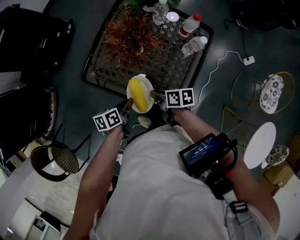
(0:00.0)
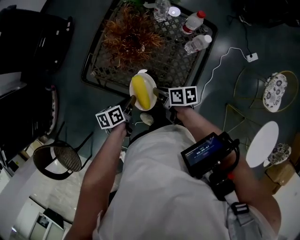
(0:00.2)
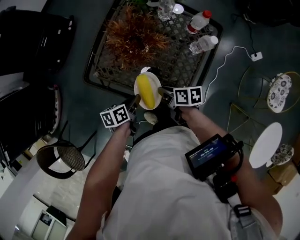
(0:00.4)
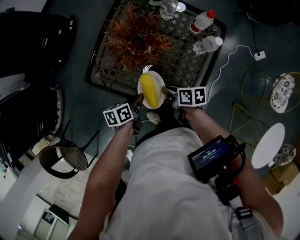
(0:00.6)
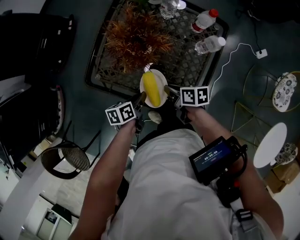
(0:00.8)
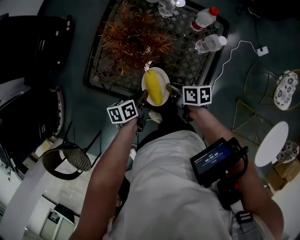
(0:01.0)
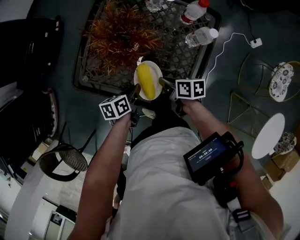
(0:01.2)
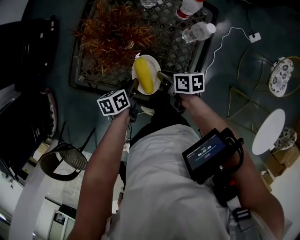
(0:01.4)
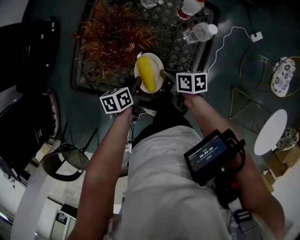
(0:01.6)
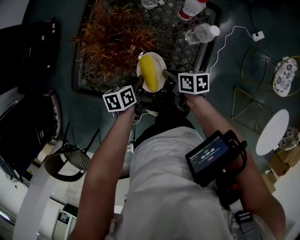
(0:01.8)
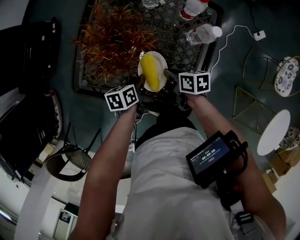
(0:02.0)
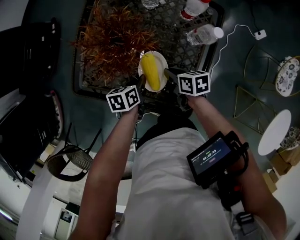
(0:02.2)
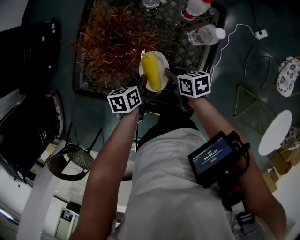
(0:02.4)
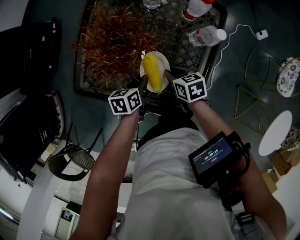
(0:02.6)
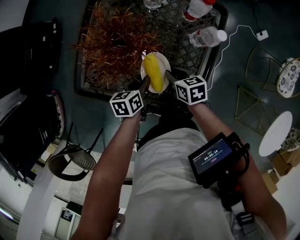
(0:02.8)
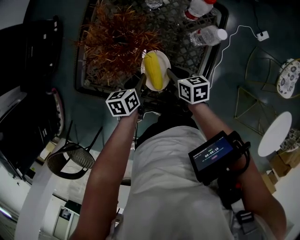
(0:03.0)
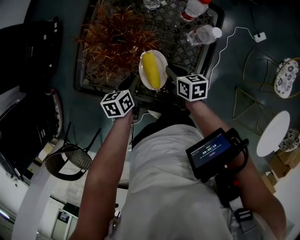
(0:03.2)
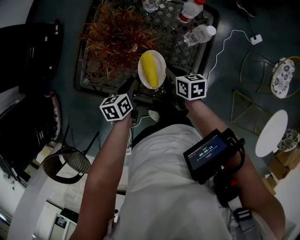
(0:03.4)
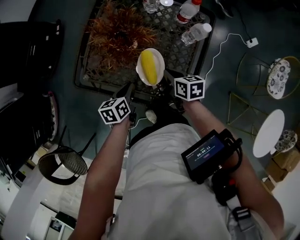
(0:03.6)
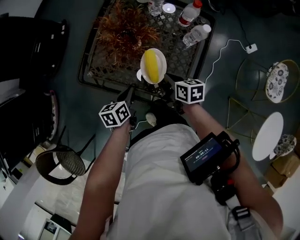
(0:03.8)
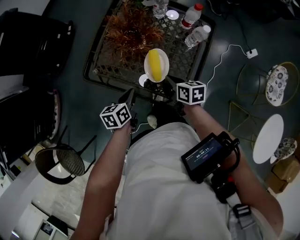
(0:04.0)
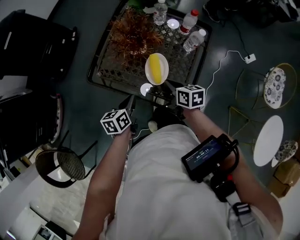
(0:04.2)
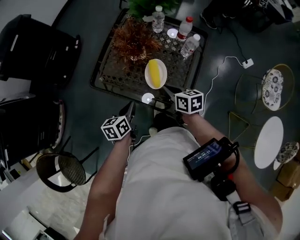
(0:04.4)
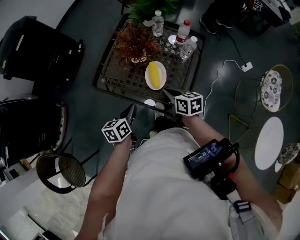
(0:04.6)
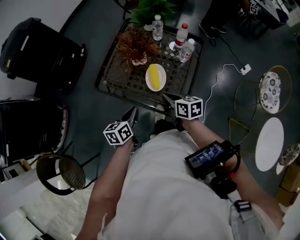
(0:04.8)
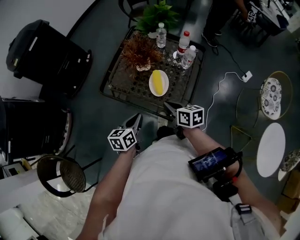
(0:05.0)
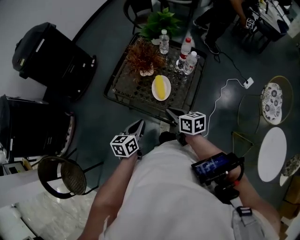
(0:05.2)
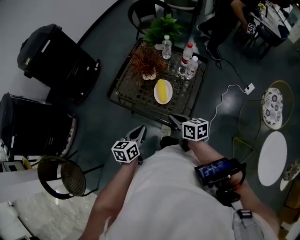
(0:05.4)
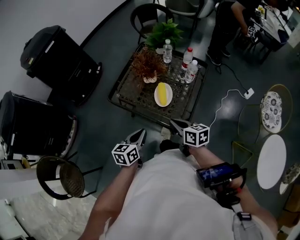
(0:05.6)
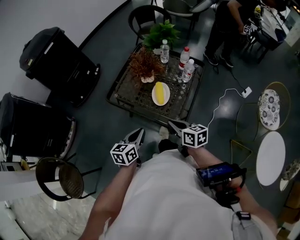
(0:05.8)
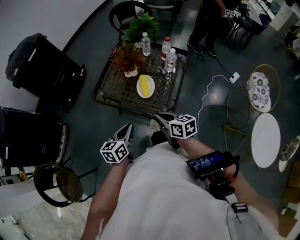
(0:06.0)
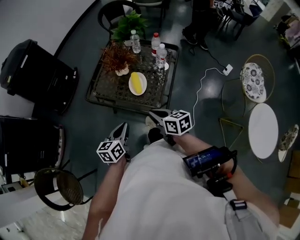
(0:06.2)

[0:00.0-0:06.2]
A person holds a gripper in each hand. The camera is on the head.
0:00.0 to 0:01.6: The left gripper goes some 15 cm forward, downward and to the right. Meanwhile the right gripper is displaced downward, to the right and forward by about 15 cm.
0:03.2 to 0:04.6: The left gripper is displaced backward and upward by approximately 20 cm. The right gripper travels upward and backward by roughly 20 cm.
0:04.6 to 0:06.2: Both grippers move backward and upward, approximately 15 cm.

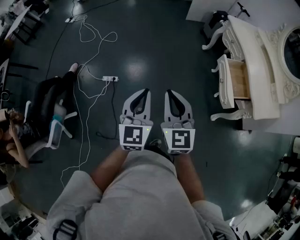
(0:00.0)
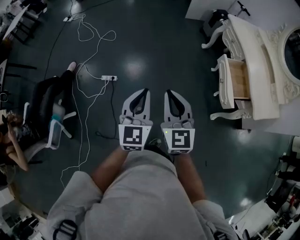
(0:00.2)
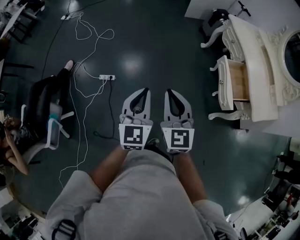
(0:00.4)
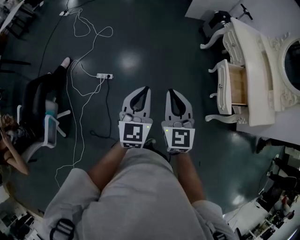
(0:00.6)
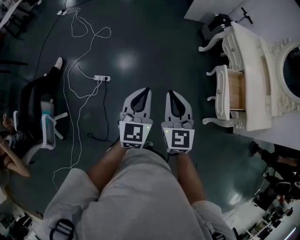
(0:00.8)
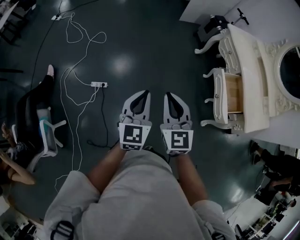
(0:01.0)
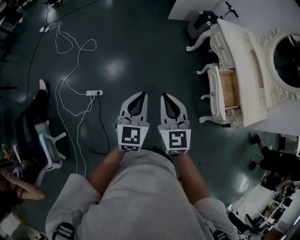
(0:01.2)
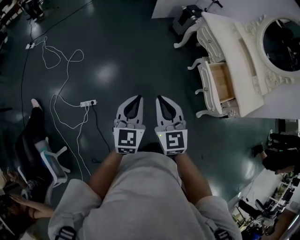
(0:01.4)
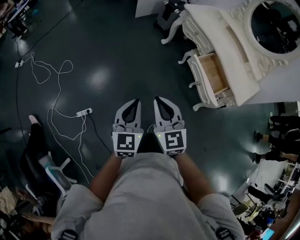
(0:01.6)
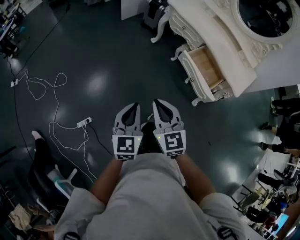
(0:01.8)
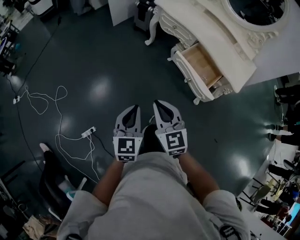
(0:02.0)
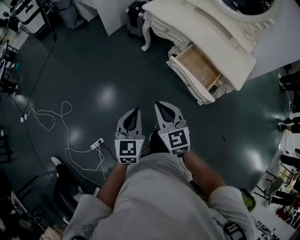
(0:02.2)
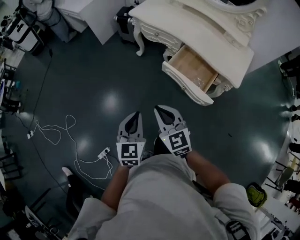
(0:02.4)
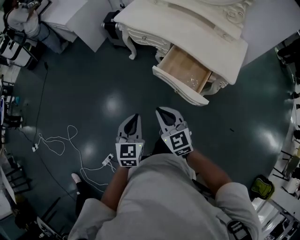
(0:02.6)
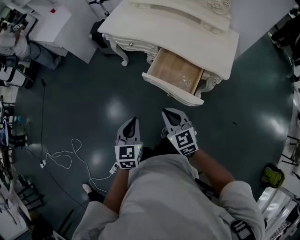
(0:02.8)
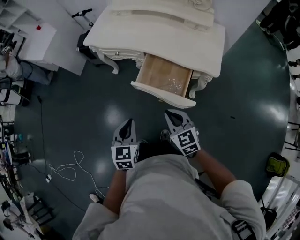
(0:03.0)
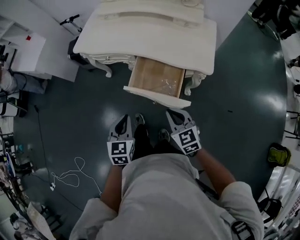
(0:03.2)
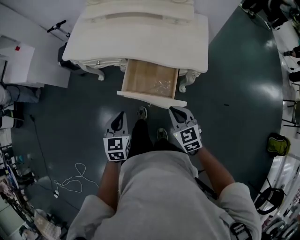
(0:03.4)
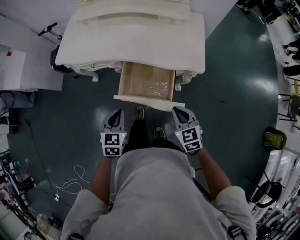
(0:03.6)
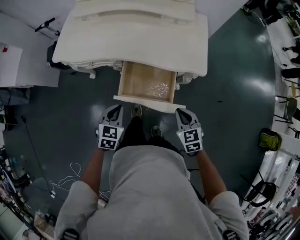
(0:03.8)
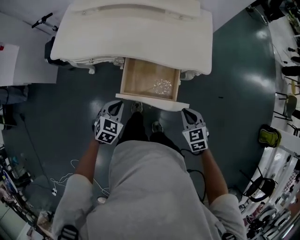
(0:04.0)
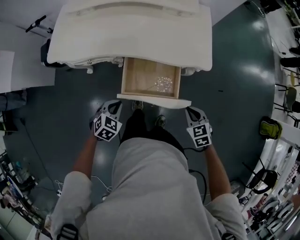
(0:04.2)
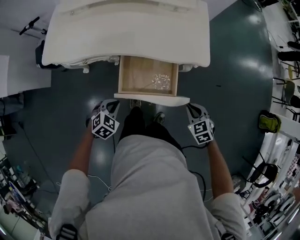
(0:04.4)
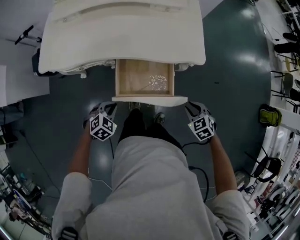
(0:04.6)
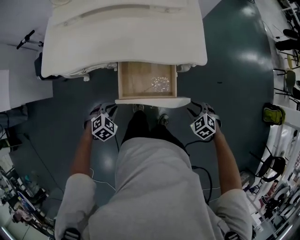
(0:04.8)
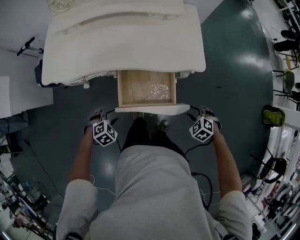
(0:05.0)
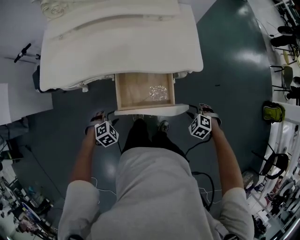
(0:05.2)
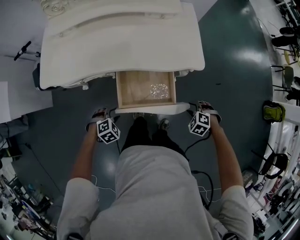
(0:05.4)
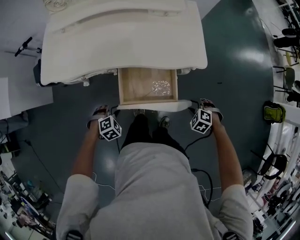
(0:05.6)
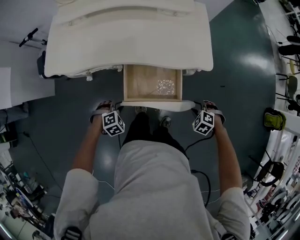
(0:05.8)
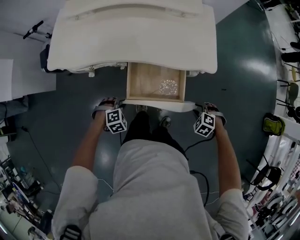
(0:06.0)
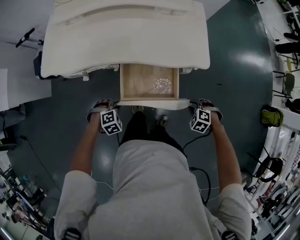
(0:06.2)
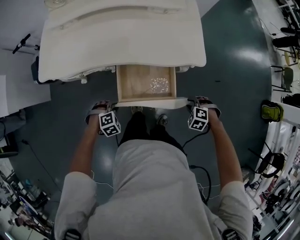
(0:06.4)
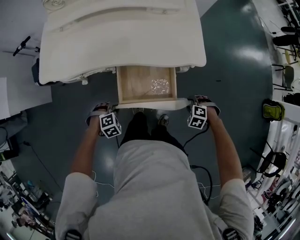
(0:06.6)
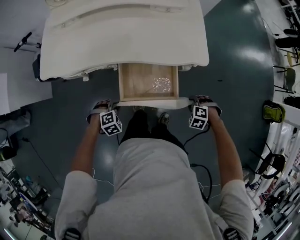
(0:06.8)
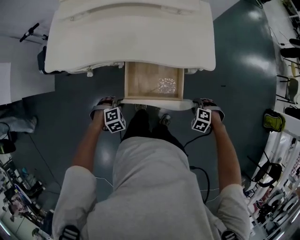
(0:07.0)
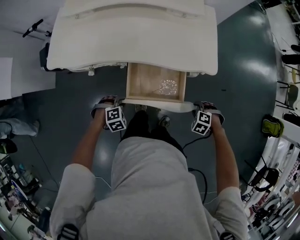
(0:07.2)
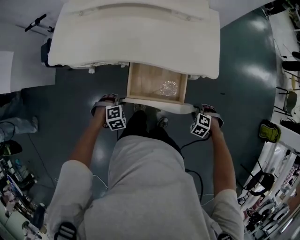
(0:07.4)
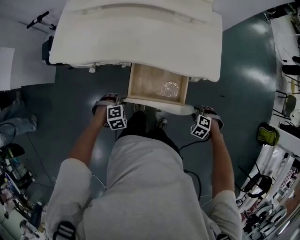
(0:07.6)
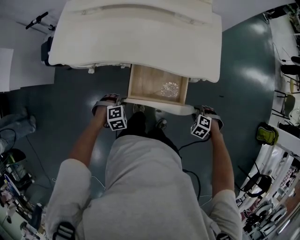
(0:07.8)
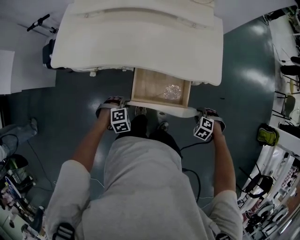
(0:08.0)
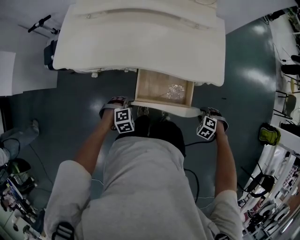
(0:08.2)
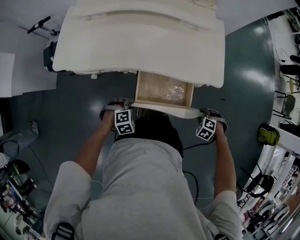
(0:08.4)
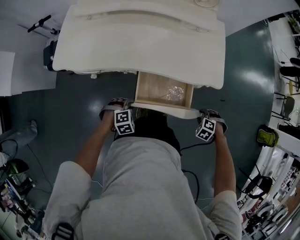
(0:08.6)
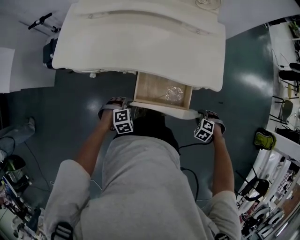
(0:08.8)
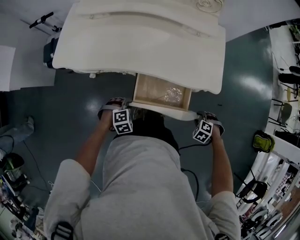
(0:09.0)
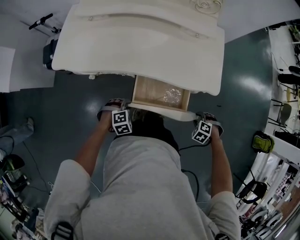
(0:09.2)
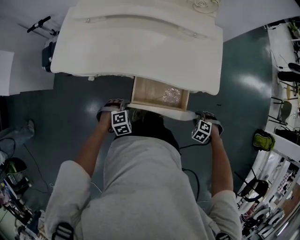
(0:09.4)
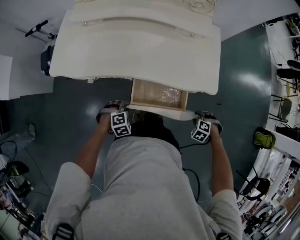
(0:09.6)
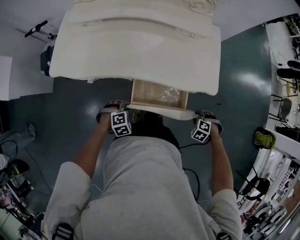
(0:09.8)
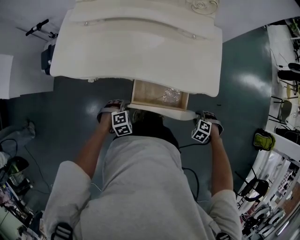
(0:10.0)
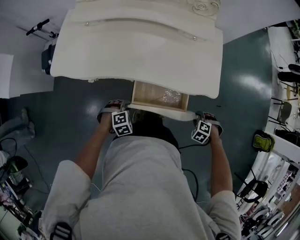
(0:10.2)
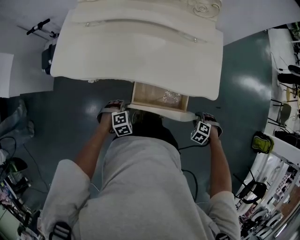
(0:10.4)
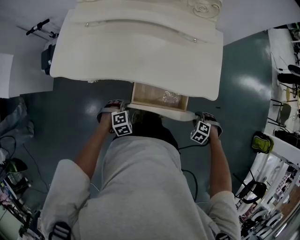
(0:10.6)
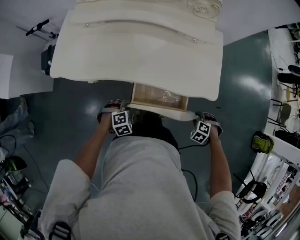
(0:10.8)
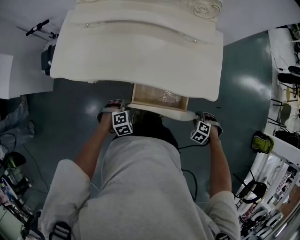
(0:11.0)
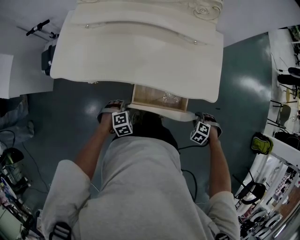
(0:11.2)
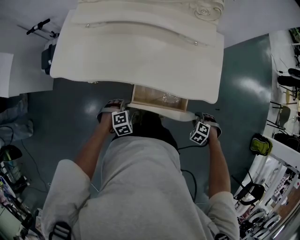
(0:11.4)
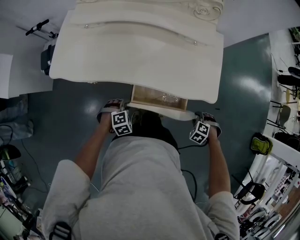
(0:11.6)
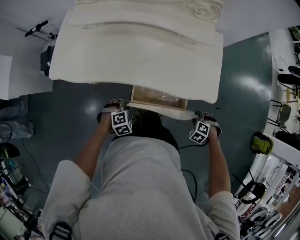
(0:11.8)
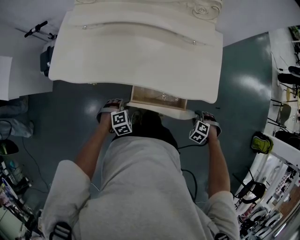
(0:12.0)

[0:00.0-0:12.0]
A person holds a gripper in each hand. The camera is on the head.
0:00.0 to 0:01.6: Both grippers move forward, roughly 20 cm. The left gripper changes its angle by roughly 20 degrees.
0:01.6 to 0:03.0: The right gripper shifts by roughly 40 cm, and turns by roughly 30 degrees. Meanwhile the left gripper moves about 40 cm, and turns by approximately 40 degrees.
0:03.0 to 0:04.4: The left gripper ends up approximately 25 cm from where it was, and changes its angle by some 60 degrees; the right gripper moves some 20 cm, and swivels roughly 40 degrees.
0:04.4 to 0:06.0: The grippers both shift downward by about 10 cm. The left gripper rotates about 30 degrees, and opens its fingers, while the right gripper turns by some 40 degrees, and opens its fingers.
0:06.0 to 0:09.0: The grippers move only a little.
0:09.0 to 0:12.0: The grippers move only a little.

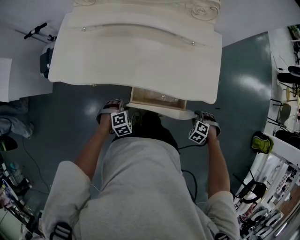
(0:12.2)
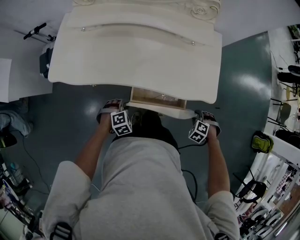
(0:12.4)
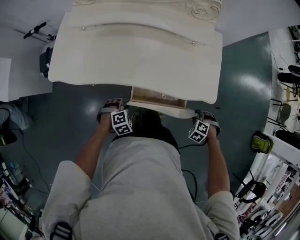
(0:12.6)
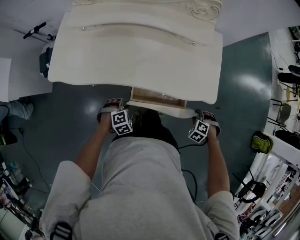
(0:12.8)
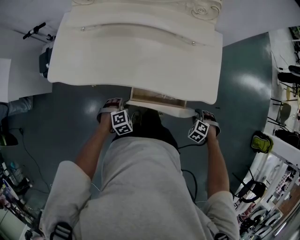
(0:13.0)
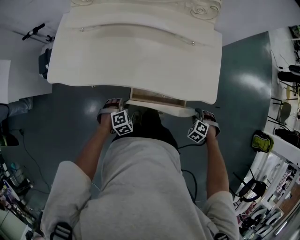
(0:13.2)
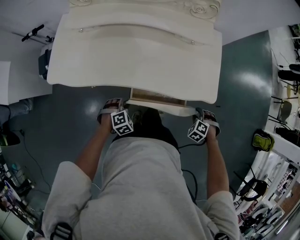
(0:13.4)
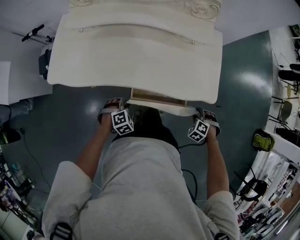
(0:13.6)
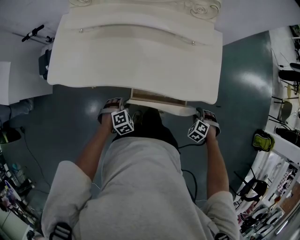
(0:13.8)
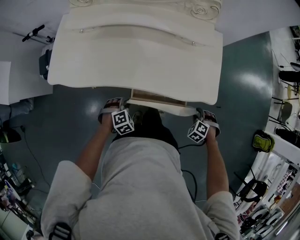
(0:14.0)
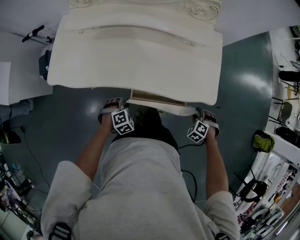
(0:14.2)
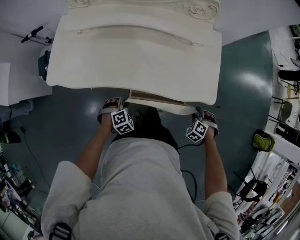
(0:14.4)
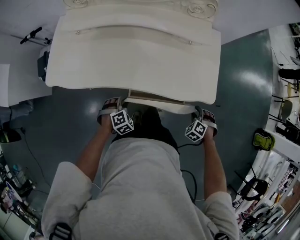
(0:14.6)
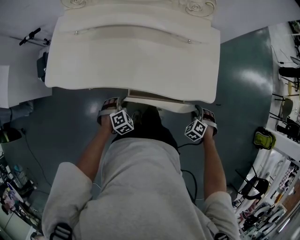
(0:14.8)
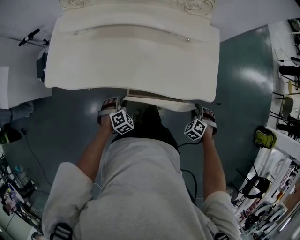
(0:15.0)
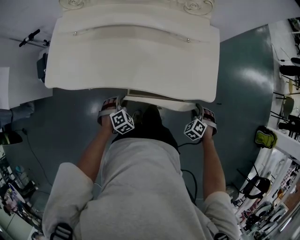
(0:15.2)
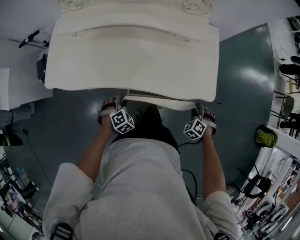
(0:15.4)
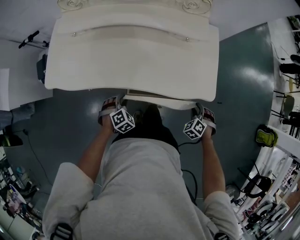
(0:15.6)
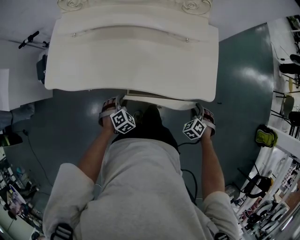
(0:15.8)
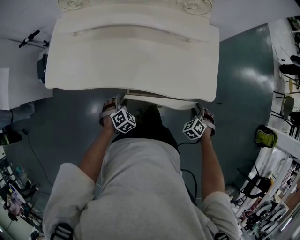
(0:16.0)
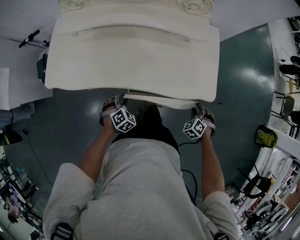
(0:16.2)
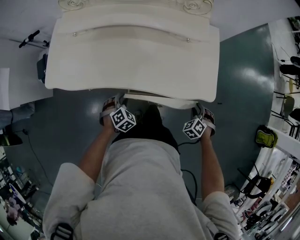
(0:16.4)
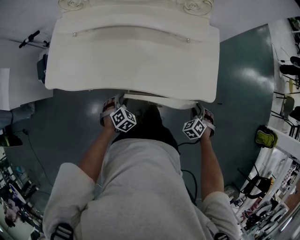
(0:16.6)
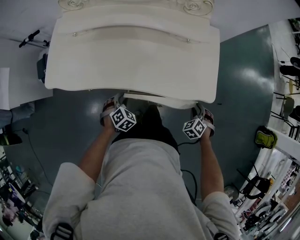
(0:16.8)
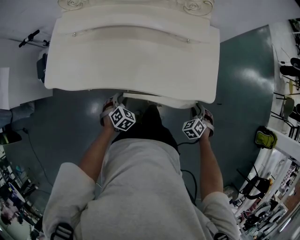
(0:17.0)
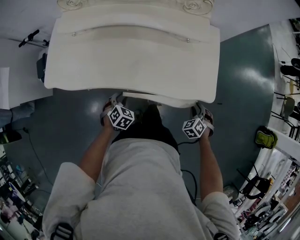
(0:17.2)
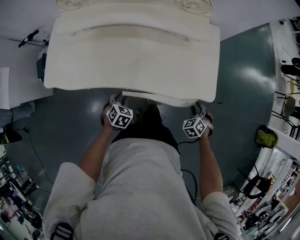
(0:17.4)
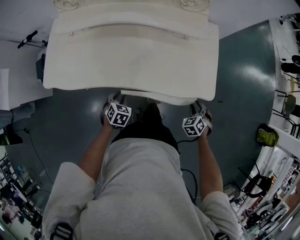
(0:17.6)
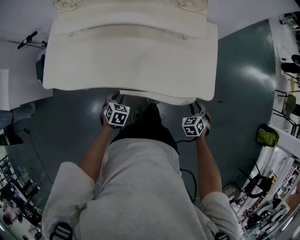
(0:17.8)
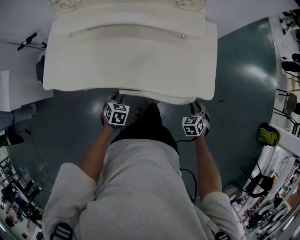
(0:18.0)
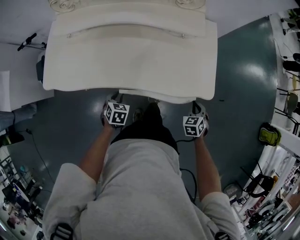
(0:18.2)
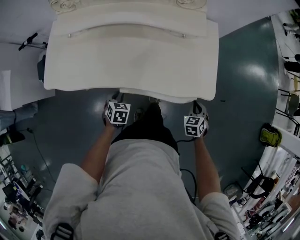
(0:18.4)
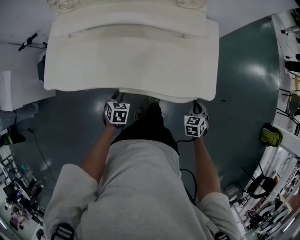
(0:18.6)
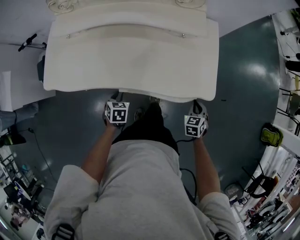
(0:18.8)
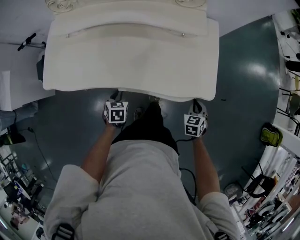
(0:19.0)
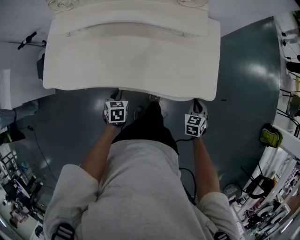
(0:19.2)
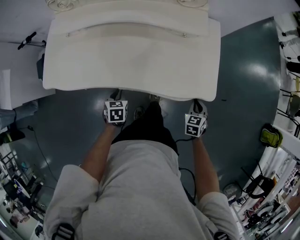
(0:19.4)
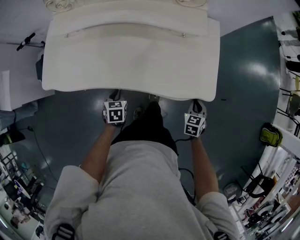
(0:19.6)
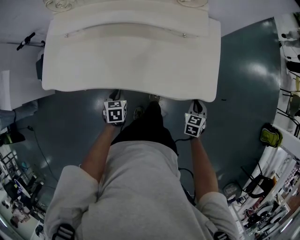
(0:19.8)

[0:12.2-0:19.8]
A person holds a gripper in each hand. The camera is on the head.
0:12.2 to 0:15.2: The grippers move only a little.
0:15.2 to 0:16.8: The grippers move only a little.
0:16.8 to 0:18.2: The right gripper swivels about 30 degrees, and closes. Meanwhile the left gripper swivels approximately 30 degrees.
0:18.2 to 0:19.8: The grippers stay close to where they were, moving slightly.
